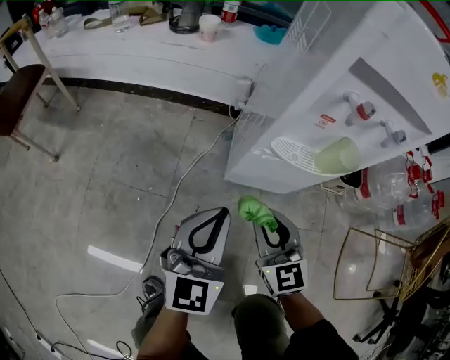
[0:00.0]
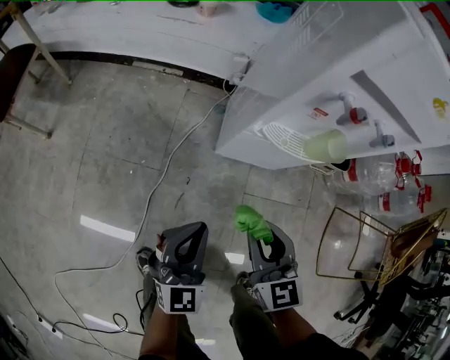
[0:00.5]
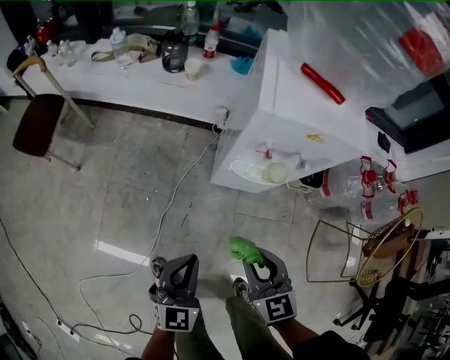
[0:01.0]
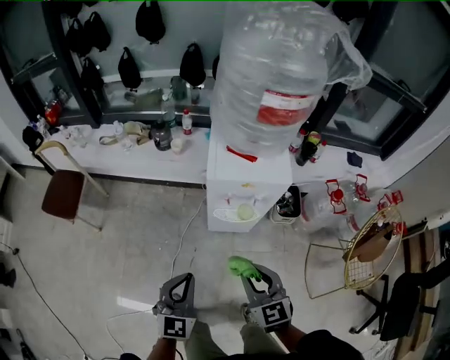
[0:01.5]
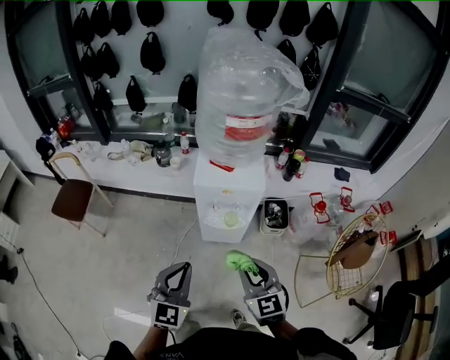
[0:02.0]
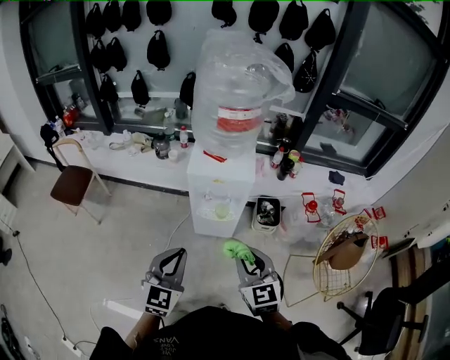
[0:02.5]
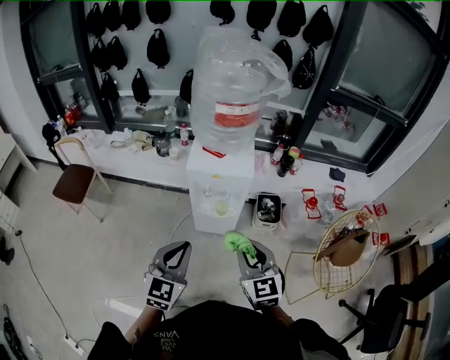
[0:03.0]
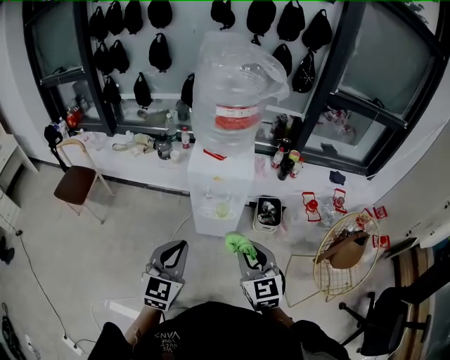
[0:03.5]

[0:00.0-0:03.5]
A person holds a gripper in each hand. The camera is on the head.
0:00.0 to 0:02.0: Both grippers travel together upward, about 50 cm.
0:02.0 to 0:03.5: The right gripper heads to the right, covering roughly 5 cm, while the left gripper changes place by about 5 cm.

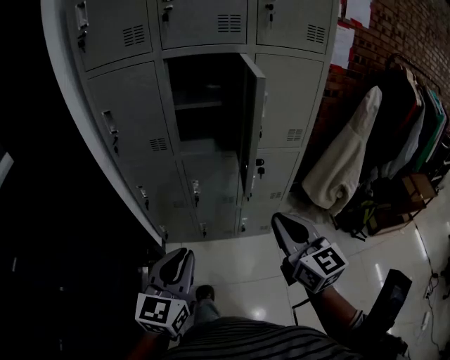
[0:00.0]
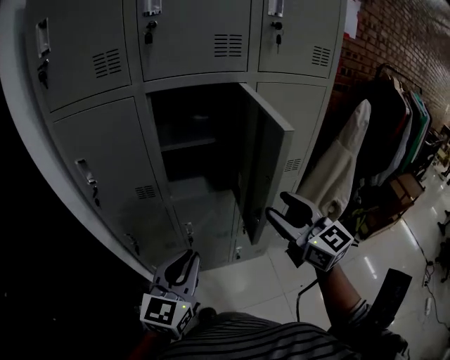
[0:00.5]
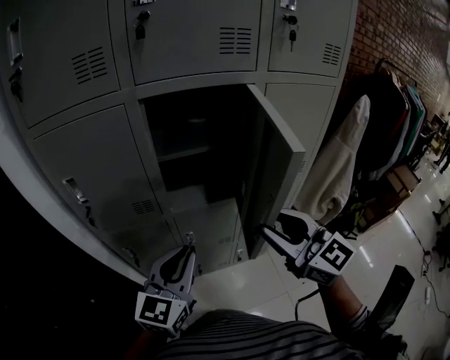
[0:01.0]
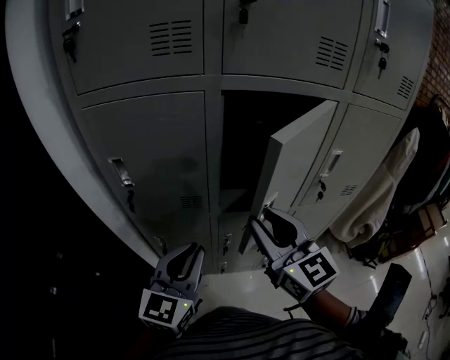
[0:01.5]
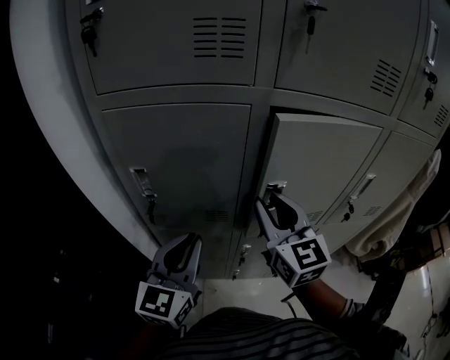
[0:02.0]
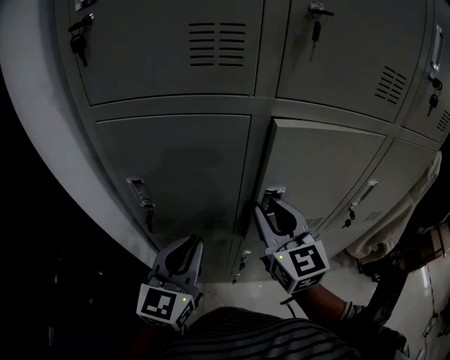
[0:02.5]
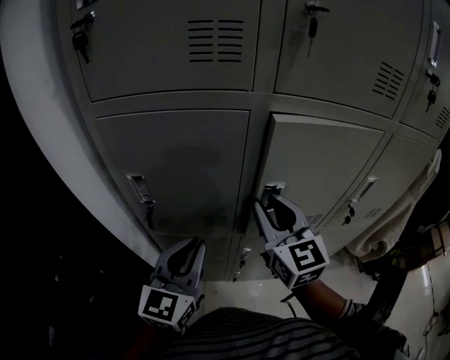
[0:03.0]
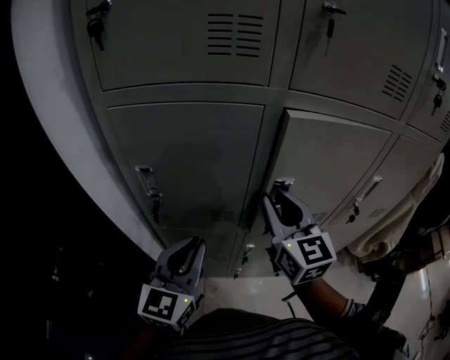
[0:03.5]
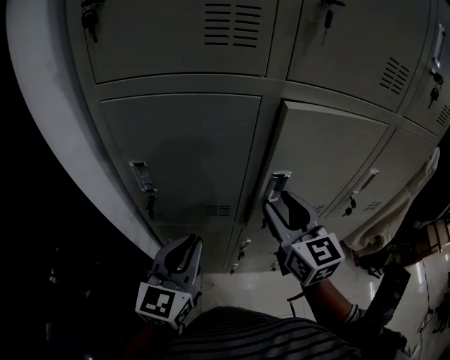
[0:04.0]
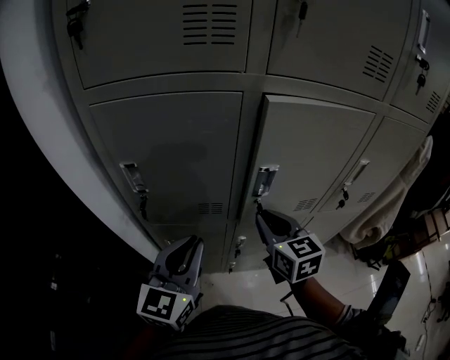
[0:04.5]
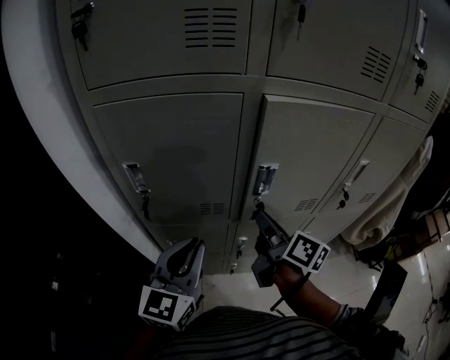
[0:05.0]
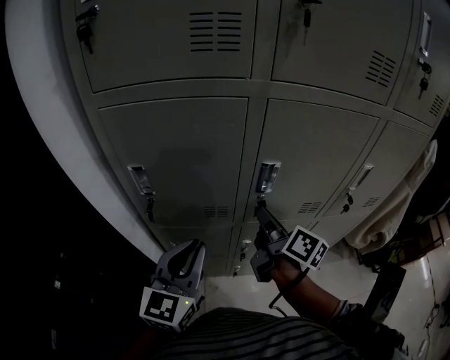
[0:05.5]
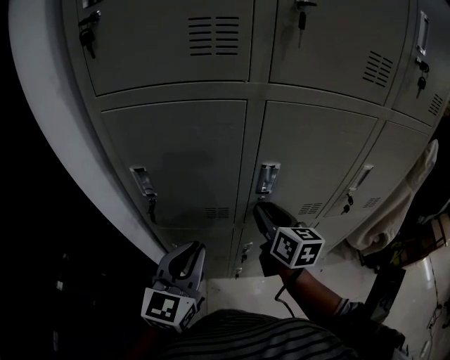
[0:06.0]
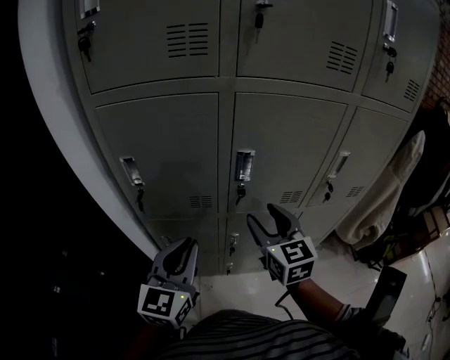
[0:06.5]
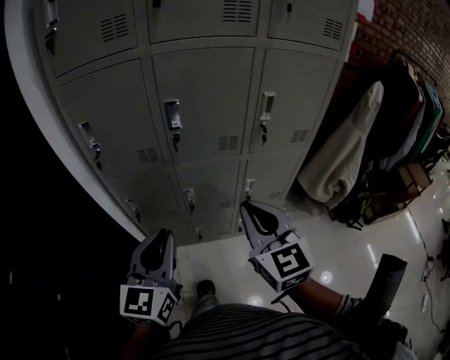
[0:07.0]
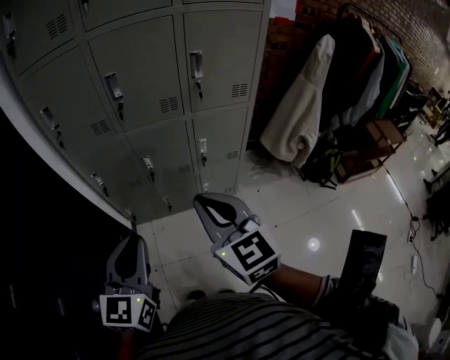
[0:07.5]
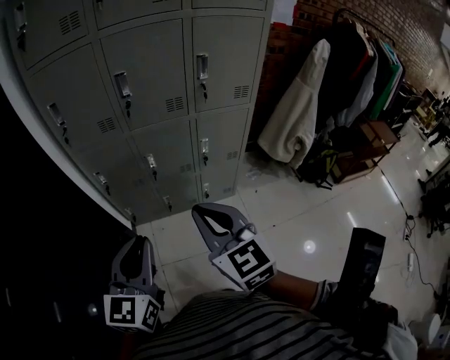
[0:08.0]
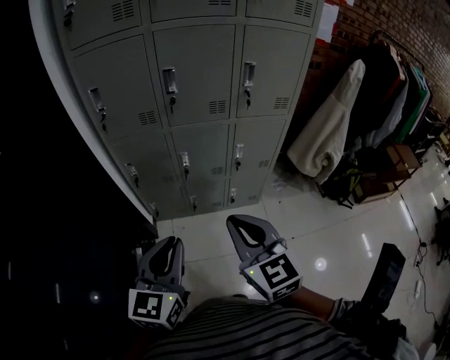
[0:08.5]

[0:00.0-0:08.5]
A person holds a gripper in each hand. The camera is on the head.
0:00.0 to 0:02.0: The two grippers go approximately 40 cm forward and to the left. The right gripper opens up.
0:02.0 to 0:04.0: The grippers make only small movements.
0:04.0 to 0:06.5: Both grippers travel together backward, about 5 cm. The right gripper closes, then opens again.
0:06.5 to 0:08.5: The grippers both shift backward by about 35 cm. The right gripper closes.

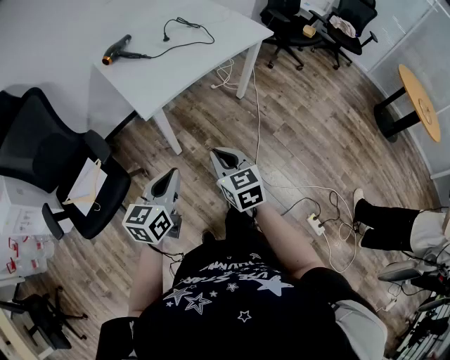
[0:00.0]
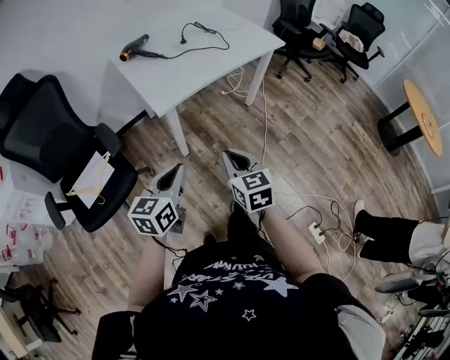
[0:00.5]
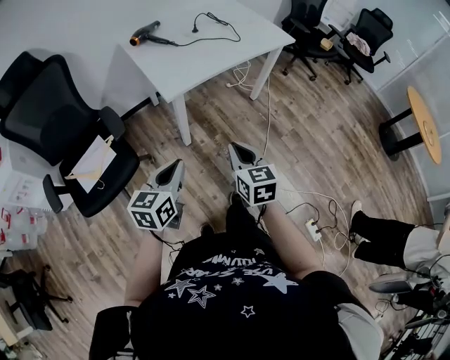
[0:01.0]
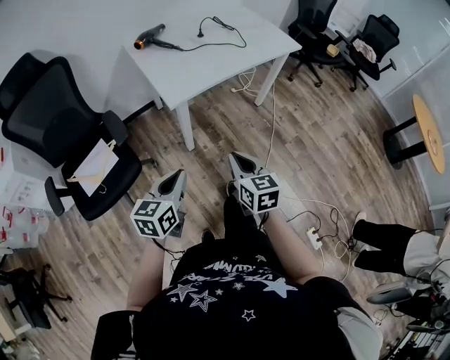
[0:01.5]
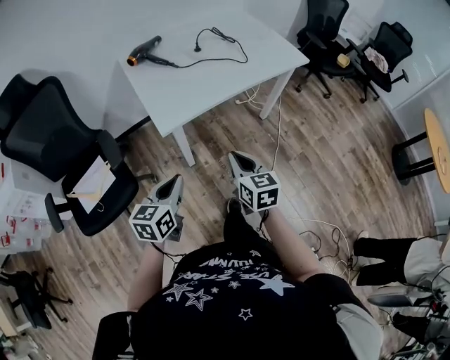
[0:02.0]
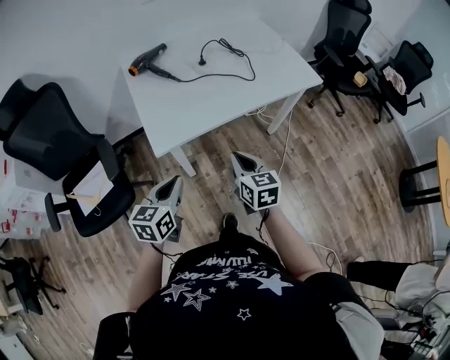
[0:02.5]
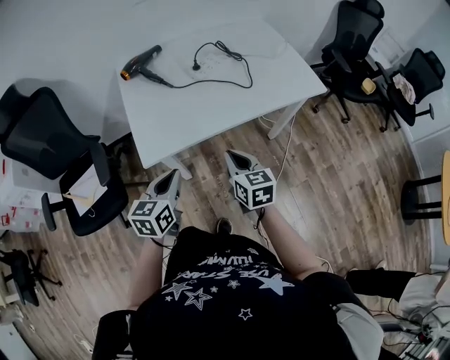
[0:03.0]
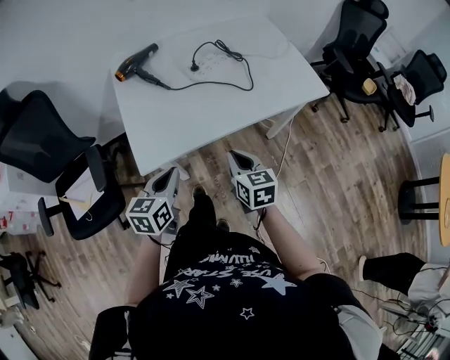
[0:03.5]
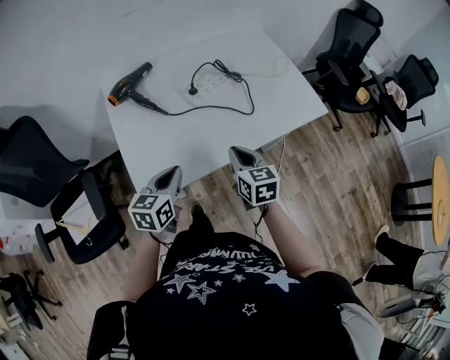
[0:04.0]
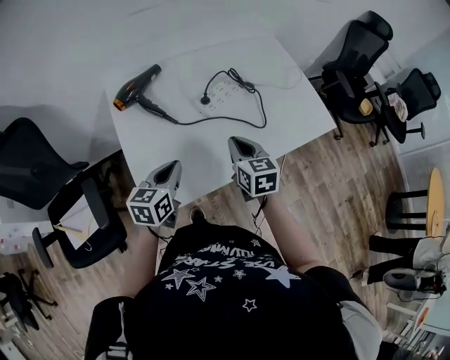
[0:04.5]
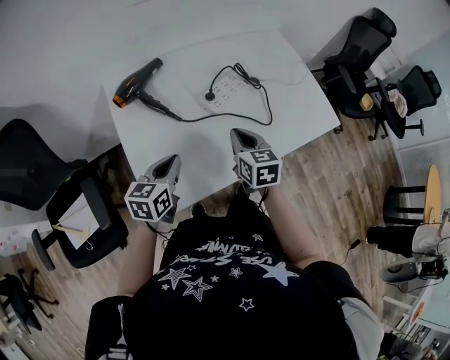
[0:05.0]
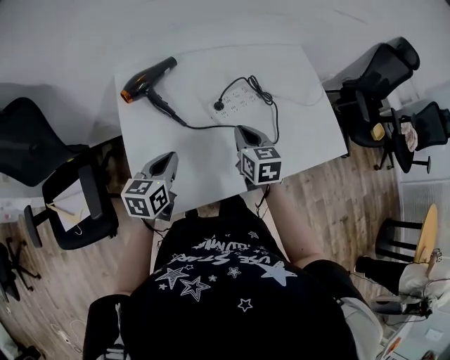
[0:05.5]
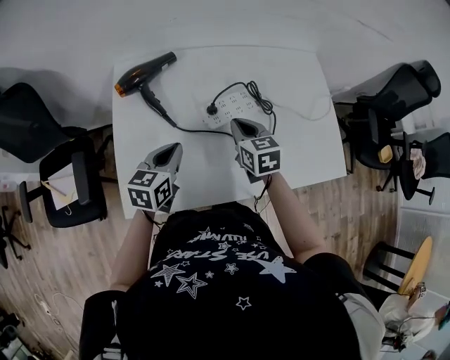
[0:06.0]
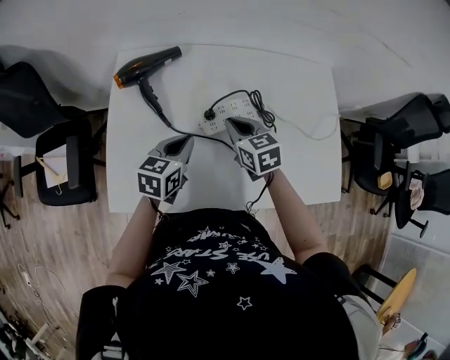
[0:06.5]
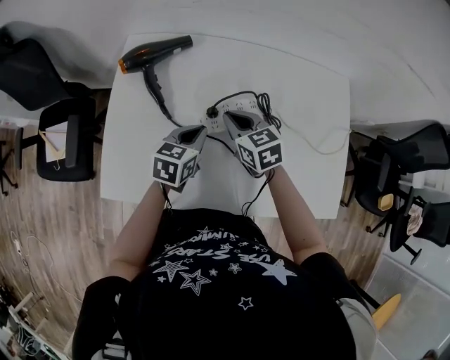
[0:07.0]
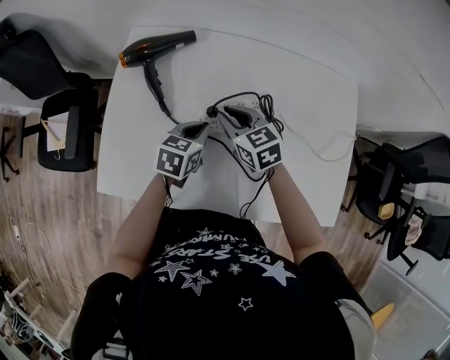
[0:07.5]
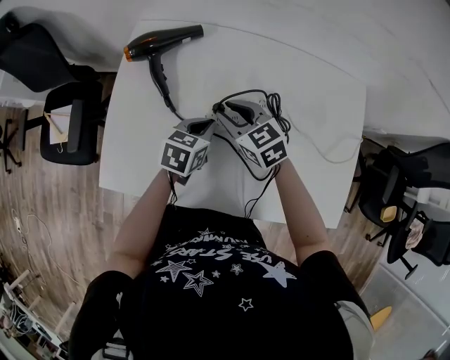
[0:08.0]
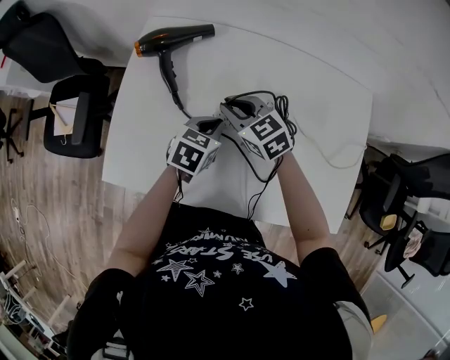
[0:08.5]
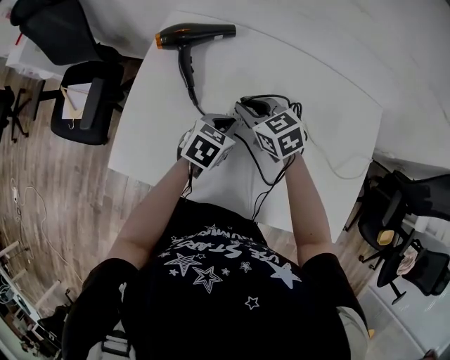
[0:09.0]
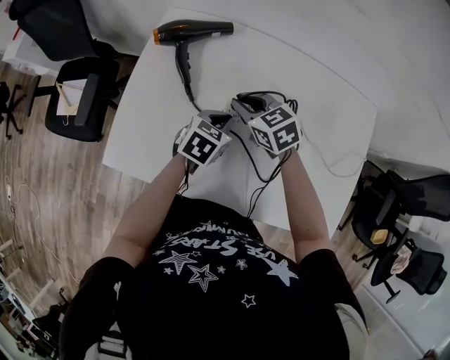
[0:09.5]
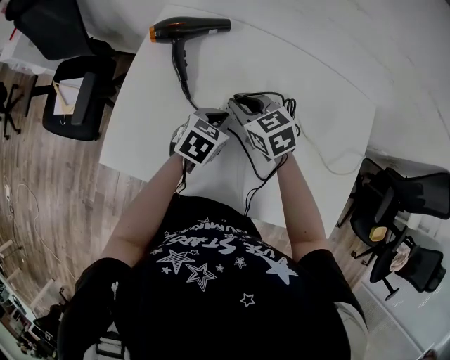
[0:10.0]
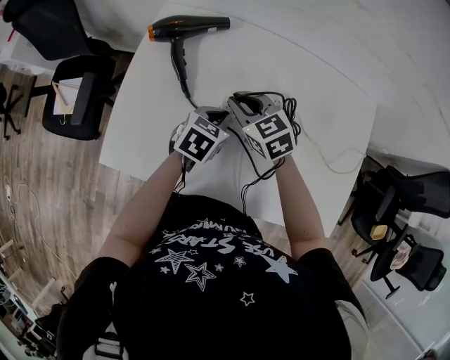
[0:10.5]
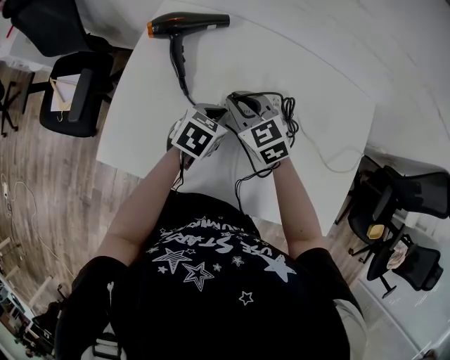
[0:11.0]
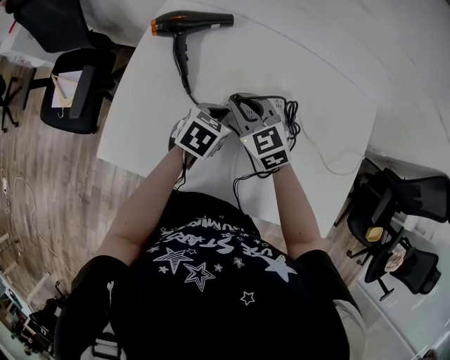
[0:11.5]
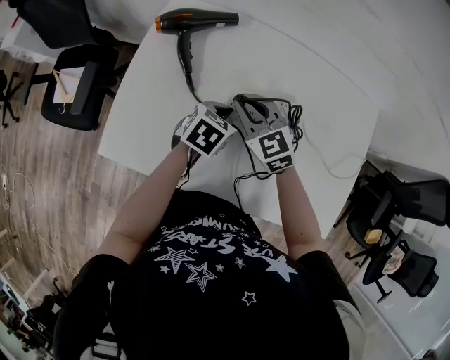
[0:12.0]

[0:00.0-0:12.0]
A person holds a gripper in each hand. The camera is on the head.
0:00.0 to 0:02.0: The grippers both shift forward by roughly 10 cm.
0:02.0 to 0:04.0: The two grippers go about 30 cm forward.
0:04.0 to 0:06.0: The two grippers go roughly 20 cm forward. The right gripper swivels approximately 20 degrees.
0:06.0 to 0:08.0: The right gripper goes about 5 cm forward, changes its angle by roughly 40 degrees, and opens up, while the left gripper heads to the right, downward and forward, covering about 15 cm.
0:08.0 to 0:12.0: The grippers make only small movements.

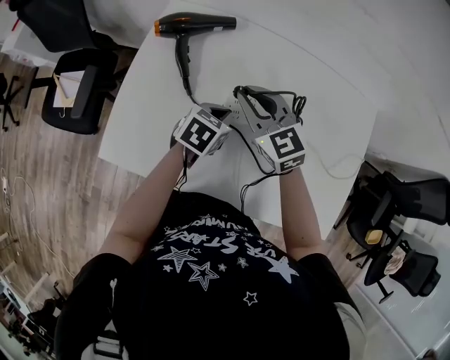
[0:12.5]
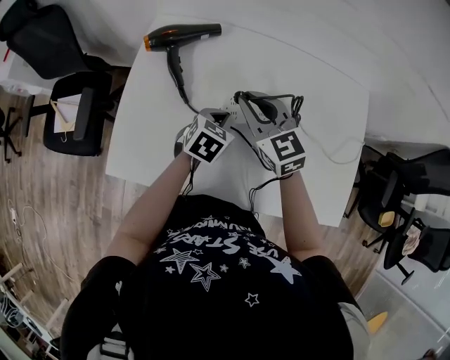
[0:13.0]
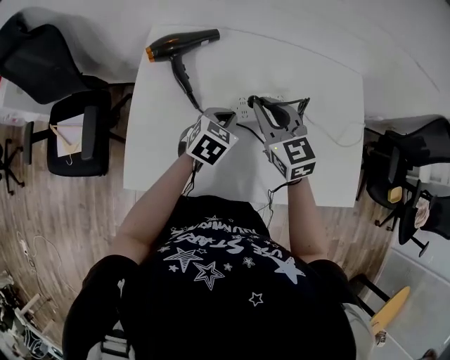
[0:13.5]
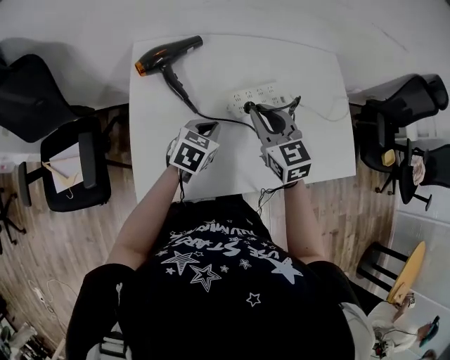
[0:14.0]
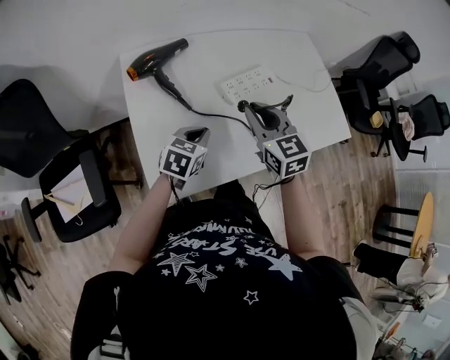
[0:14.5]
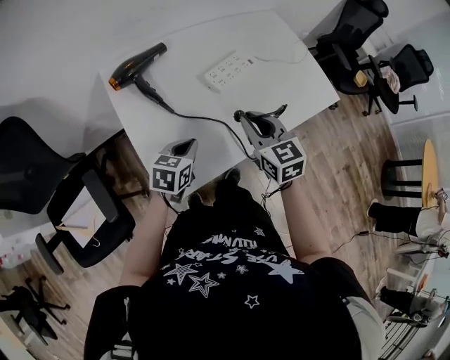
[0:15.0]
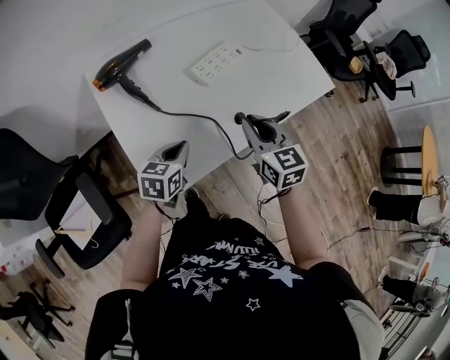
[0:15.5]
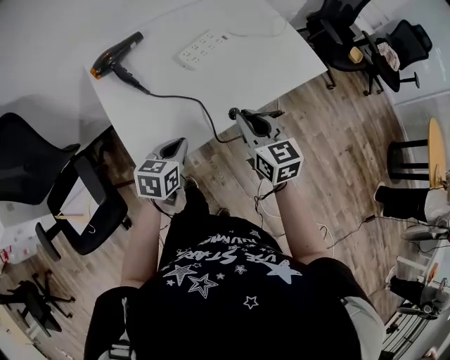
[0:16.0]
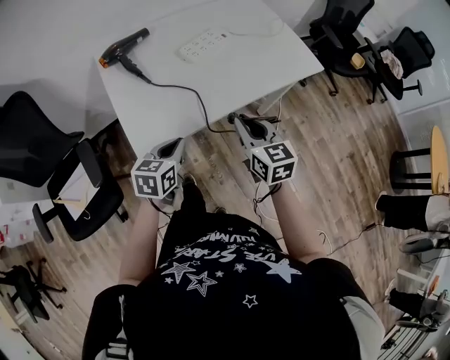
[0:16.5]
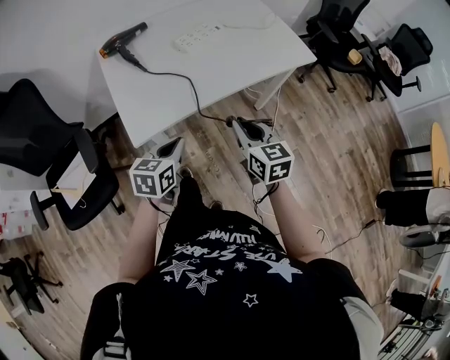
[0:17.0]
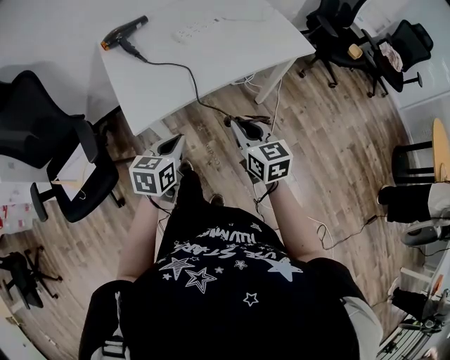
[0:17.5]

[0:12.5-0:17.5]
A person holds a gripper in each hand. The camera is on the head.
0:12.5 to 0:15.0: The right gripper changes place by roughly 20 cm, and turns by approximately 60 degrees. Meanwhile the left gripper moves about 25 cm, and turns by some 30 degrees.
0:15.0 to 0:17.5: The grippers both shift backward and to the right by about 30 cm.
